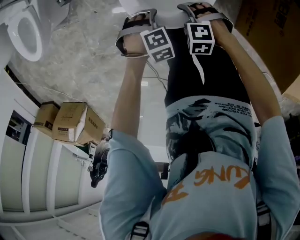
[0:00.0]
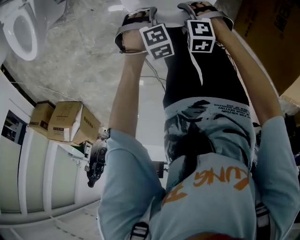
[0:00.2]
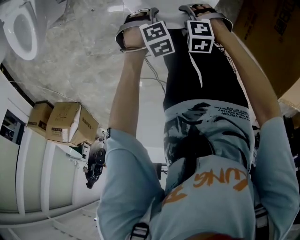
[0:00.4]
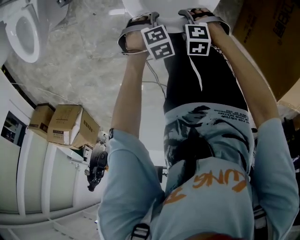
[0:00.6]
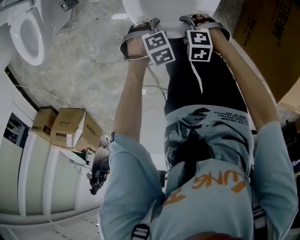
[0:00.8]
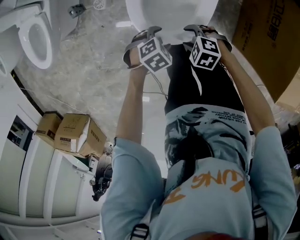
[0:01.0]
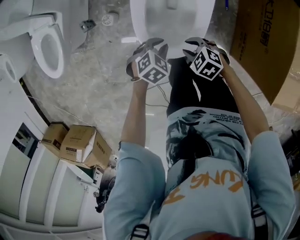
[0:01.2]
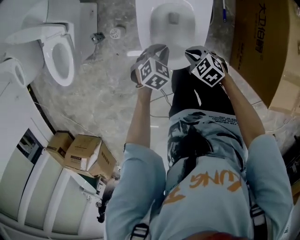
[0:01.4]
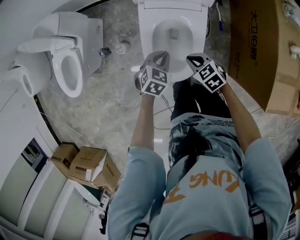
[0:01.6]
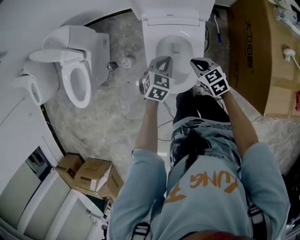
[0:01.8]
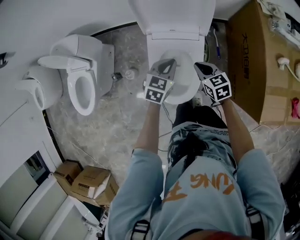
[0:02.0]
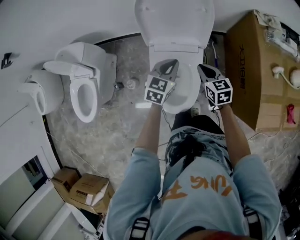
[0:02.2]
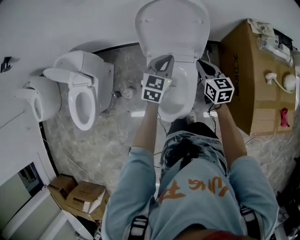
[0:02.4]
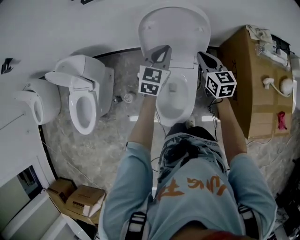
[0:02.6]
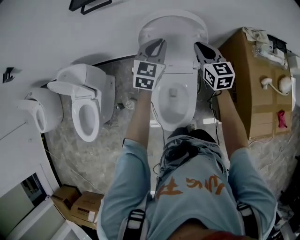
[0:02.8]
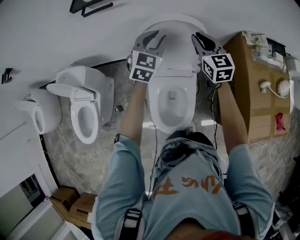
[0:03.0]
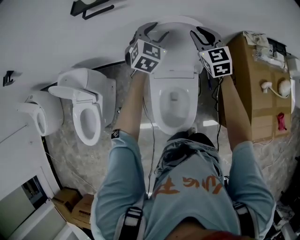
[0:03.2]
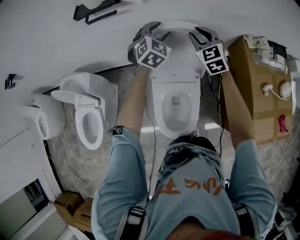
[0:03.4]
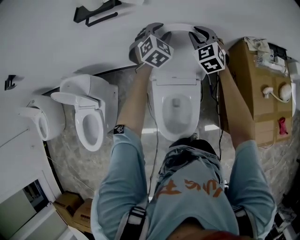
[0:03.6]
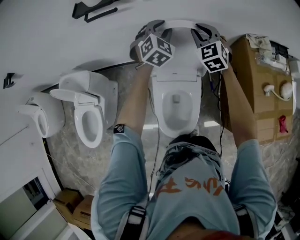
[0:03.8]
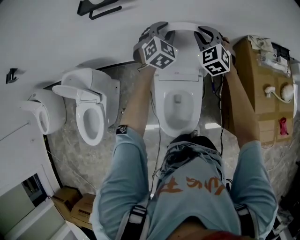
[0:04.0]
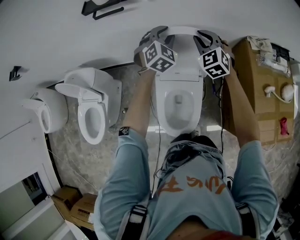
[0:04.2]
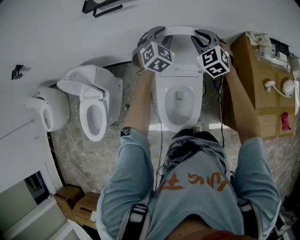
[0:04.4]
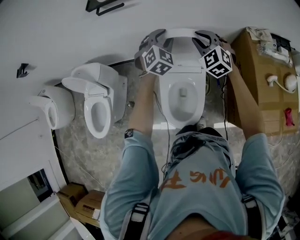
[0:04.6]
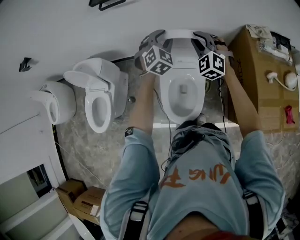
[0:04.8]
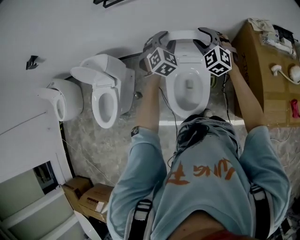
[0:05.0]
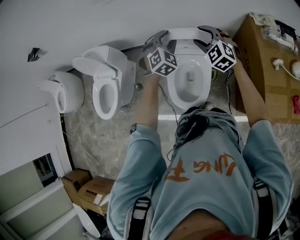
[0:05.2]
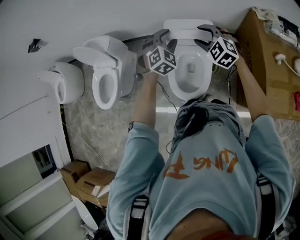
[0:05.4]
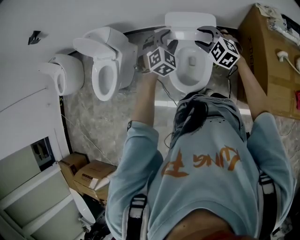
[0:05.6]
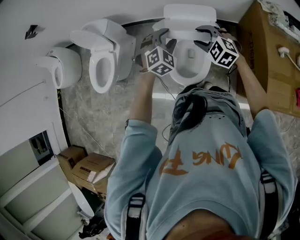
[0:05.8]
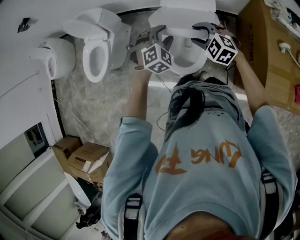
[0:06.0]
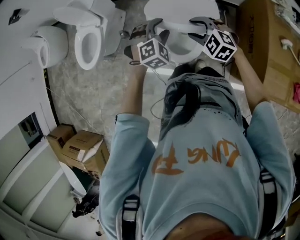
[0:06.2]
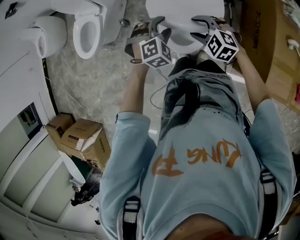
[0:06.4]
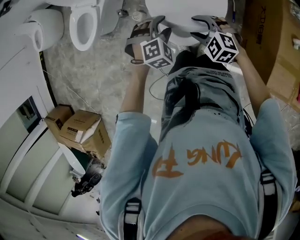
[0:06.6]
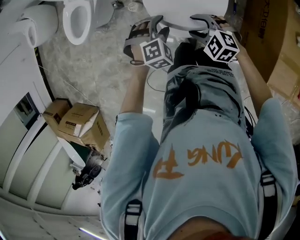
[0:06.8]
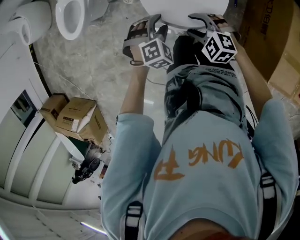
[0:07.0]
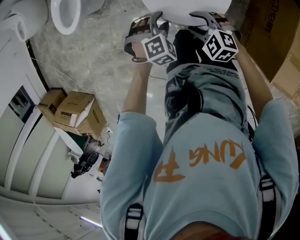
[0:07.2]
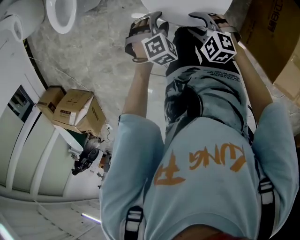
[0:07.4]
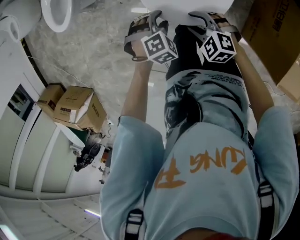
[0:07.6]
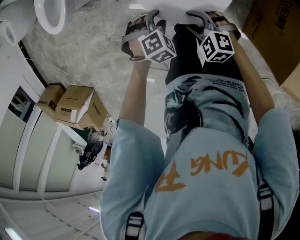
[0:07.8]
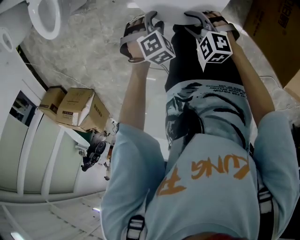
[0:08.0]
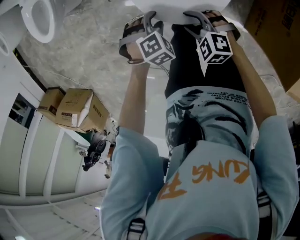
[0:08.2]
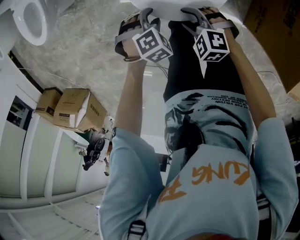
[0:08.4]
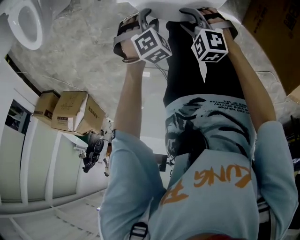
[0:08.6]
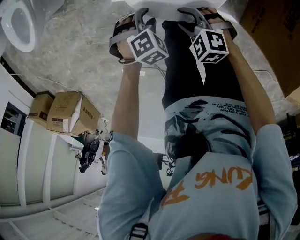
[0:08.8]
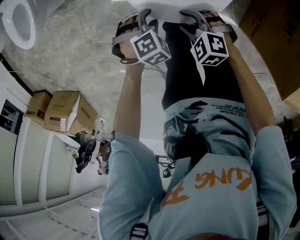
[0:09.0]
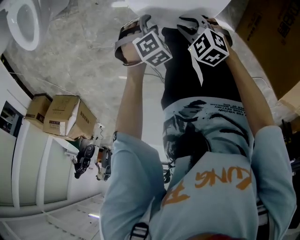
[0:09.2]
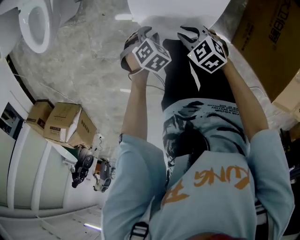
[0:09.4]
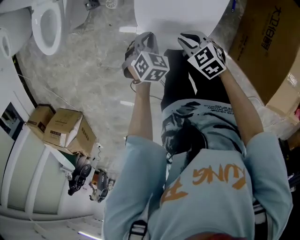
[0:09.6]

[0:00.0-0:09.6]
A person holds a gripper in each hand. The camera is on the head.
0:00.0 to 0:01.6: The two grippers go roughly 20 cm upward. The left gripper points its fingers about 30 degrees further upward, and closes its fingers. Meanwhile the right gripper rolls clockwise, seen from behind, by approximately 50 degrees, and closes its fingers.
0:01.6 to 0:03.2: The left gripper is displaced forward and upward by about 50 cm, rotates some 40 degrees, and opens its fingers. The right gripper is displaced upward and forward by approximately 50 cm, and tilts its fingers approximately 30 degrees upward.
0:03.2 to 0:04.8: Both grippers travel together backward, roughly 10 cm. The right gripper swivels some 40 degrees.
0:04.8 to 0:06.4: The right gripper shifts by approximately 35 cm, and rotates approximately 50 degrees. Meanwhile the left gripper moves about 35 cm, and changes its angle by roughly 20 degrees.
0:06.4 to 0:08.0: Both grippers travel together downward, roughly 30 cm. The left gripper changes its angle by some 30 degrees.
0:08.0 to 0:09.6: The left gripper goes downward and returns, about 10 cm each way, changes its angle by approximately 30 degrees, and closes its fingers. The right gripper travels downward and back again, approximately 10 cm each way, and swivels about 30 degrees.

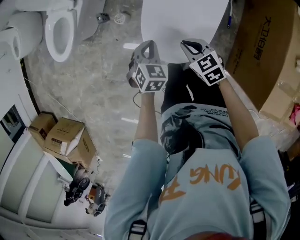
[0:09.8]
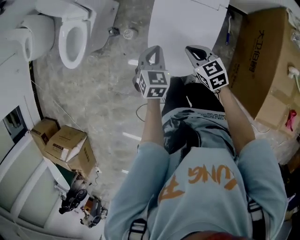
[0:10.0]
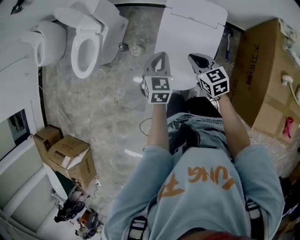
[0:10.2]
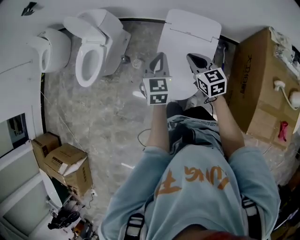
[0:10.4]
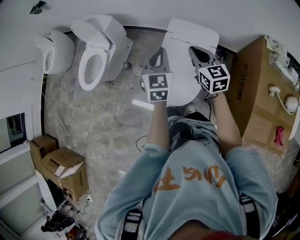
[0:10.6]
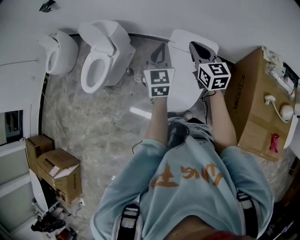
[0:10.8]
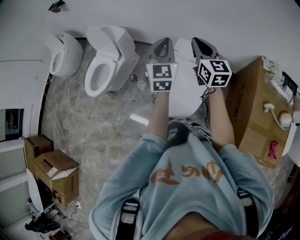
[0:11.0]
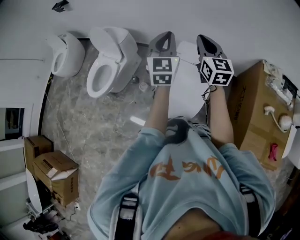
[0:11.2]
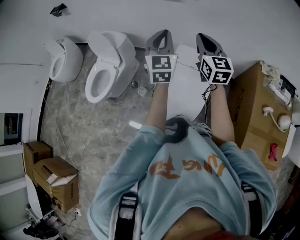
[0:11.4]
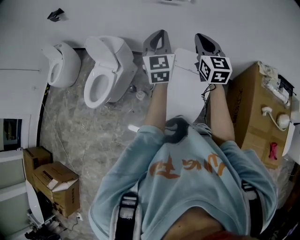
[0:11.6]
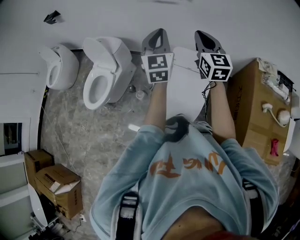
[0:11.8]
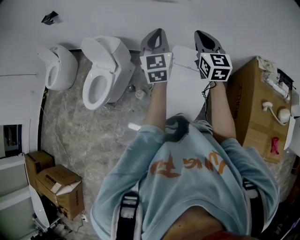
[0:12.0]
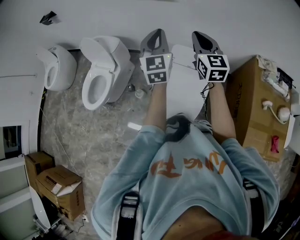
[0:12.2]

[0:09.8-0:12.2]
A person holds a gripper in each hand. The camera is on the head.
0:09.8 to 0:11.0: Both grippers travel together upward, about 50 cm. The right gripper tilts its fingers roughly 40 degrees upward; the left gripper tips its fingers upward by roughly 50 degrees.
0:11.0 to 0:12.2: The right gripper moves some 5 cm; the left gripper goes approximately 5 cm forward.

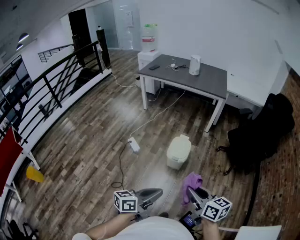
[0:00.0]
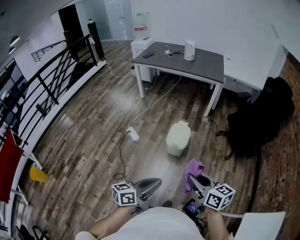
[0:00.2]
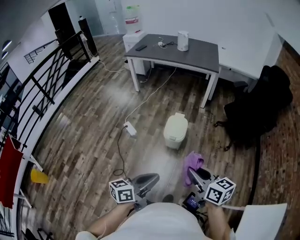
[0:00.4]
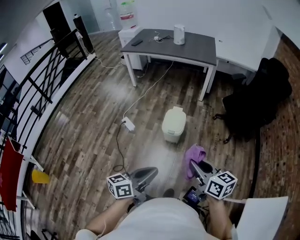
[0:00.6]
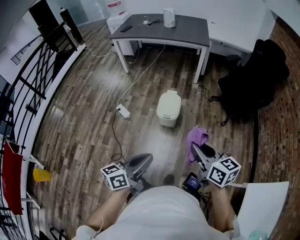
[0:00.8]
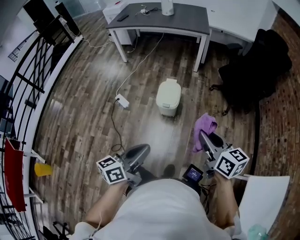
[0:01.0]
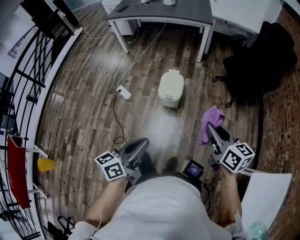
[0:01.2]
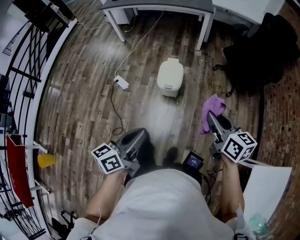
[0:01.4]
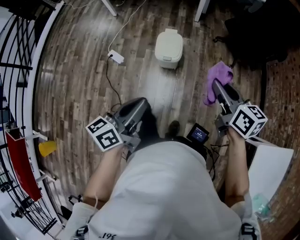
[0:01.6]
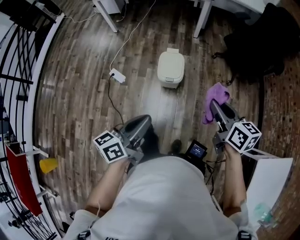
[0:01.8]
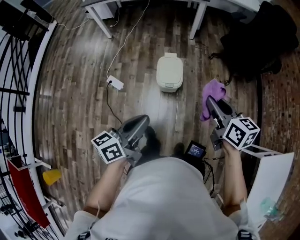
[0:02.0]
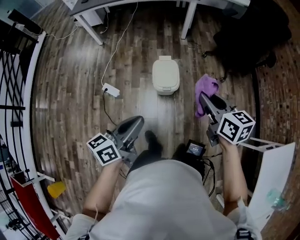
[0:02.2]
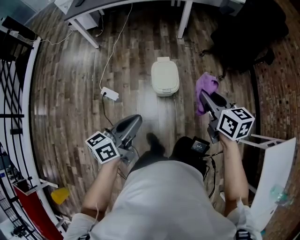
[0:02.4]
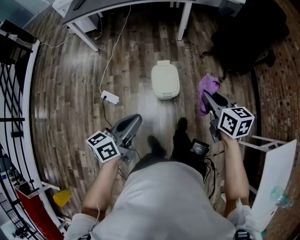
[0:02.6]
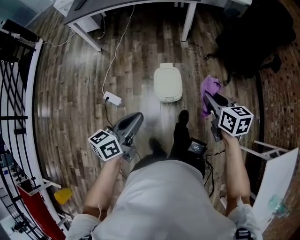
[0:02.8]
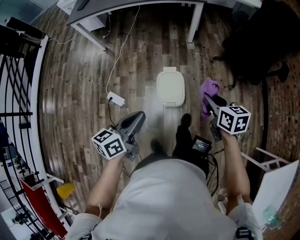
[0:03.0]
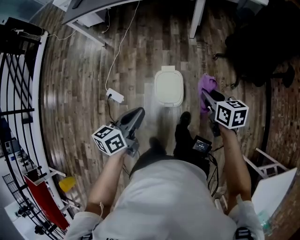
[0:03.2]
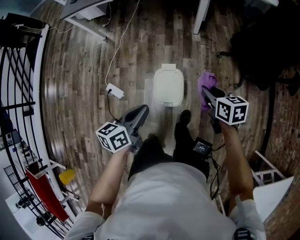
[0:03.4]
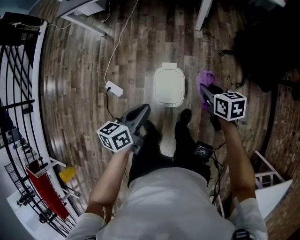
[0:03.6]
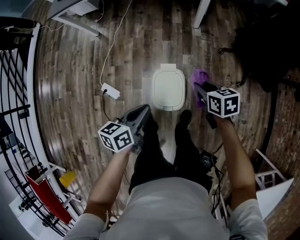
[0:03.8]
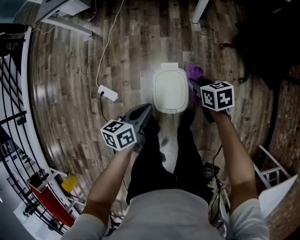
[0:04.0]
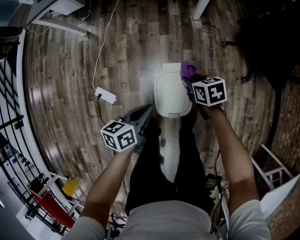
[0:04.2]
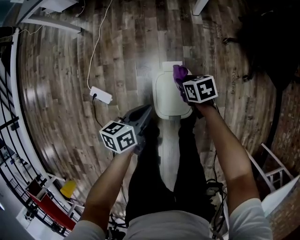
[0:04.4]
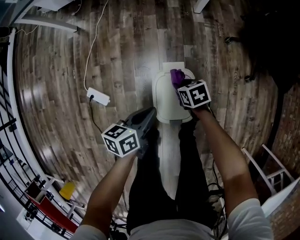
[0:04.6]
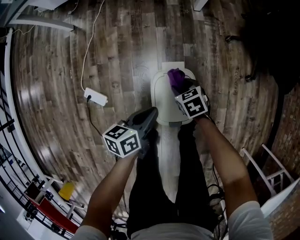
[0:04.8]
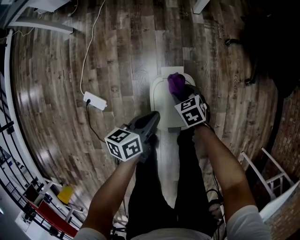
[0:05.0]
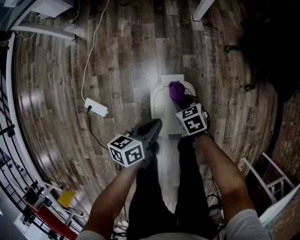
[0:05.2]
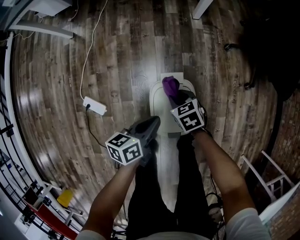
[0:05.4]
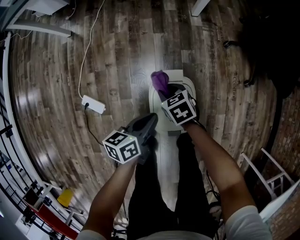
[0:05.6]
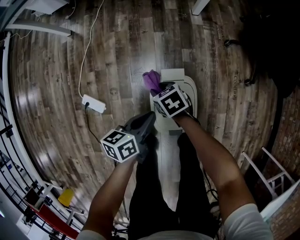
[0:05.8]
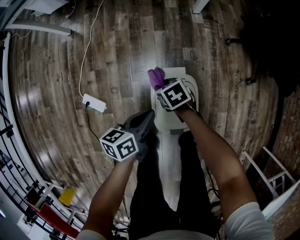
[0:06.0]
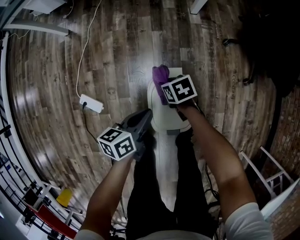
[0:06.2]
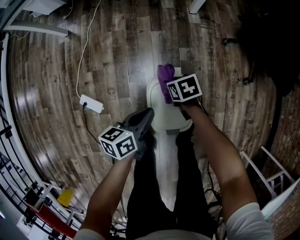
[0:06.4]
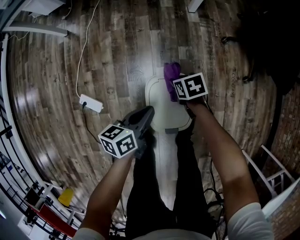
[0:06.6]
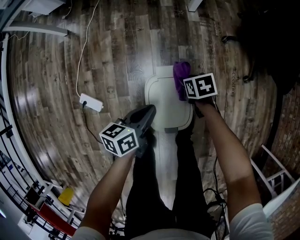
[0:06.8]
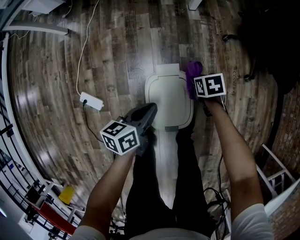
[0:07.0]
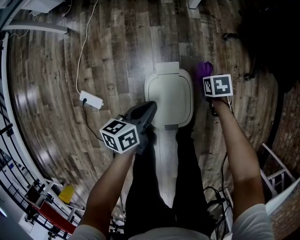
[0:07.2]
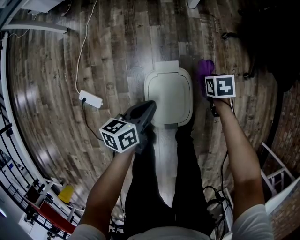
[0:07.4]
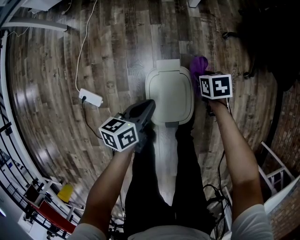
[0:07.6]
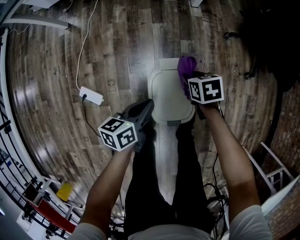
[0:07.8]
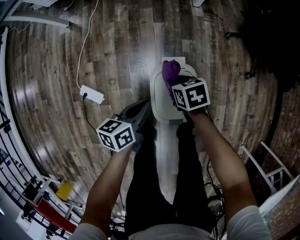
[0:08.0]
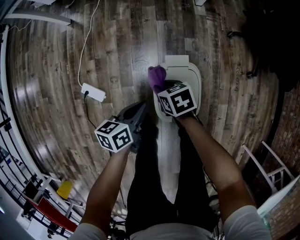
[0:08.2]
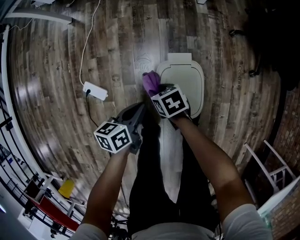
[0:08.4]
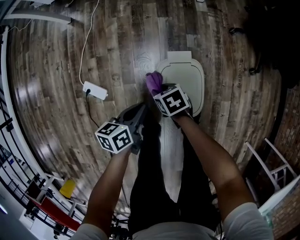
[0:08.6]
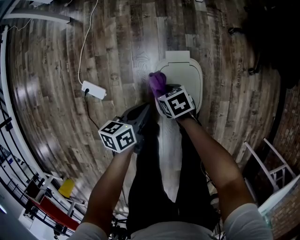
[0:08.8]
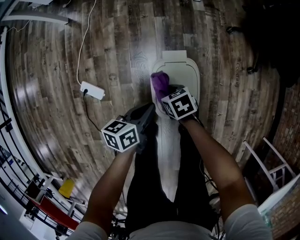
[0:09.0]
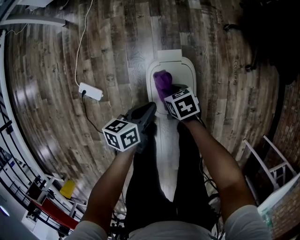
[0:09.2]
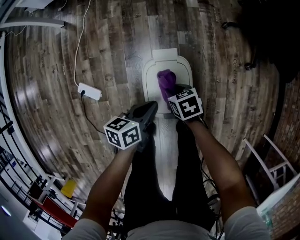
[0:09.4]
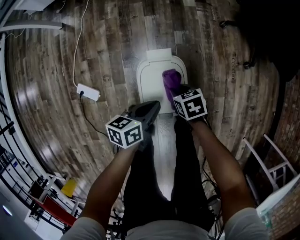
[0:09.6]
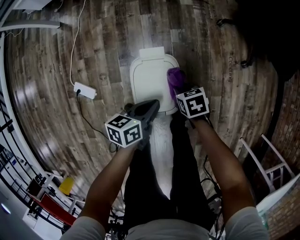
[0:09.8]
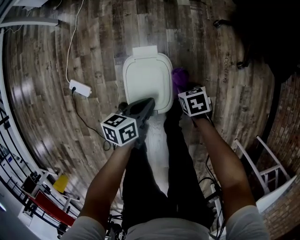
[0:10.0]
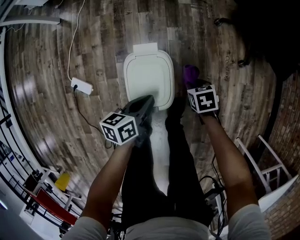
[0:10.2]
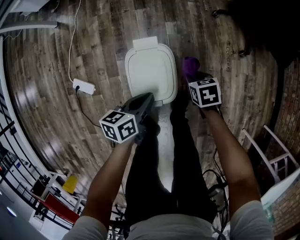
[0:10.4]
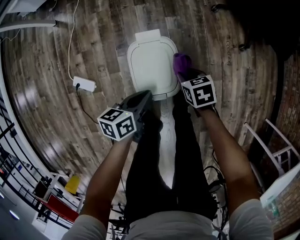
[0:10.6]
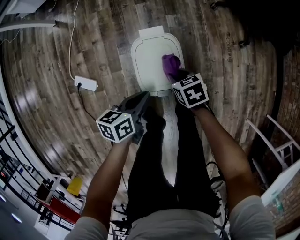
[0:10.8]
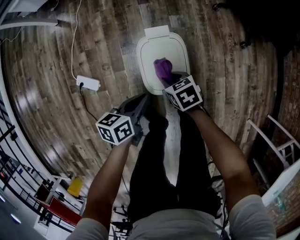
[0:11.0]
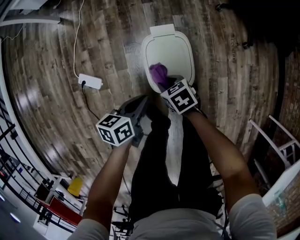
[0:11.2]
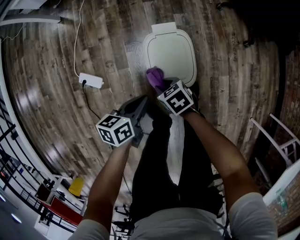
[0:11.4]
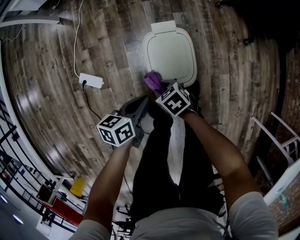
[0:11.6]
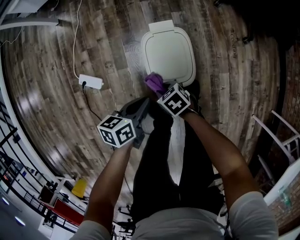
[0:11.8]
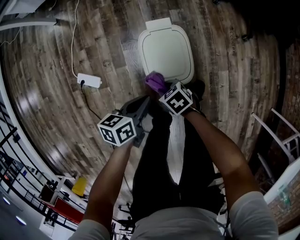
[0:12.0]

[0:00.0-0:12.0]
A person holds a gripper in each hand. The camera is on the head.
0:00.0 to 0:01.6: The left gripper shifts by approximately 15 cm.
0:01.6 to 0:03.0: The left gripper changes place by some 30 cm.
0:03.0 to 0:04.4: The left gripper travels downward by approximately 30 cm.
0:04.4 to 0:06.0: The left gripper shifts some 10 cm downward.
0:09.0 to 0:10.4: The left gripper ends up roughly 10 cm from where it was.
0:10.4 to 0:12.0: The left gripper shifts by roughly 10 cm.
